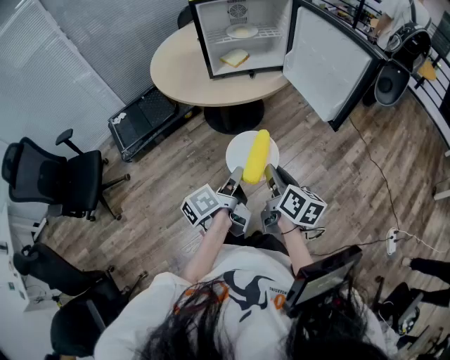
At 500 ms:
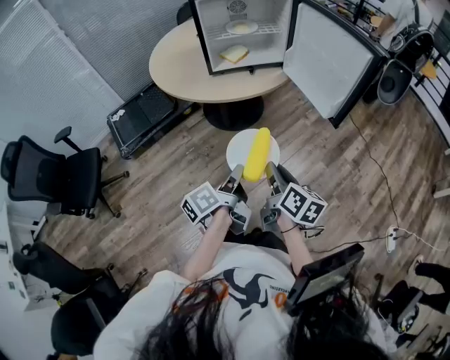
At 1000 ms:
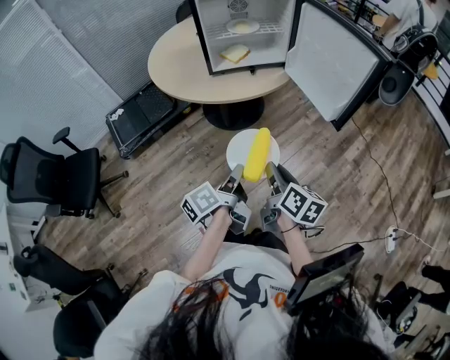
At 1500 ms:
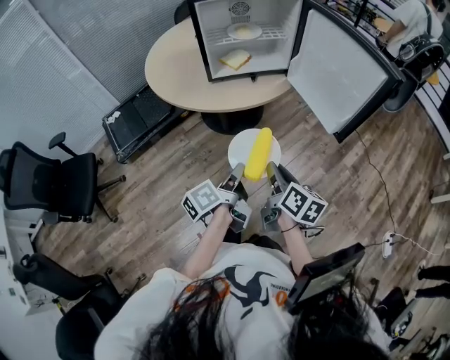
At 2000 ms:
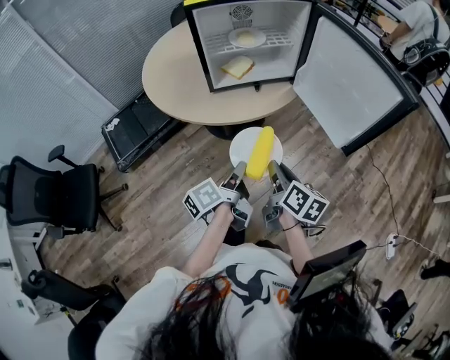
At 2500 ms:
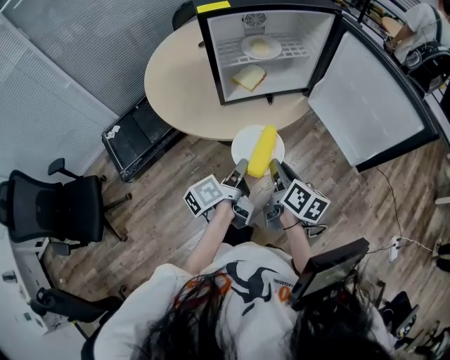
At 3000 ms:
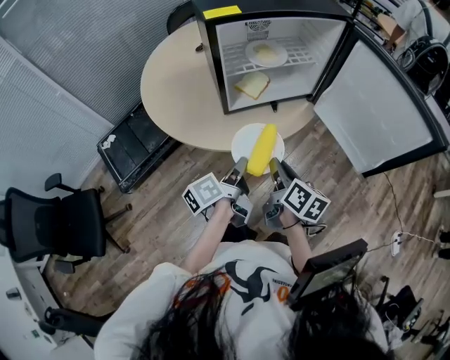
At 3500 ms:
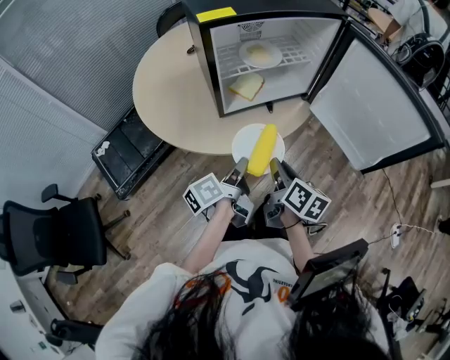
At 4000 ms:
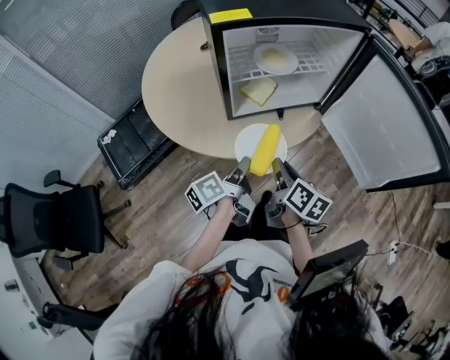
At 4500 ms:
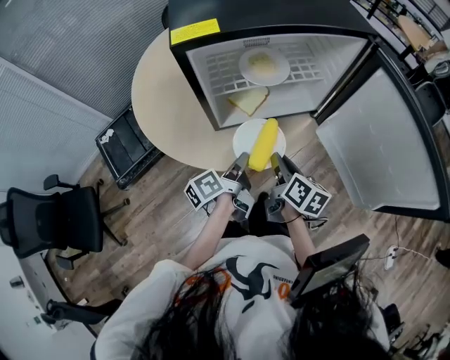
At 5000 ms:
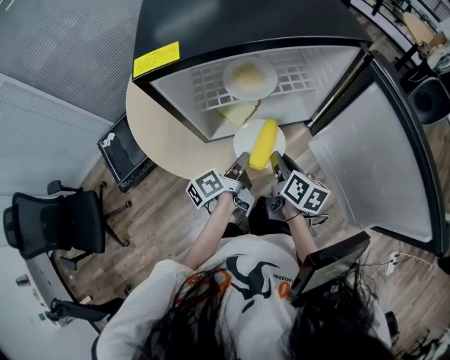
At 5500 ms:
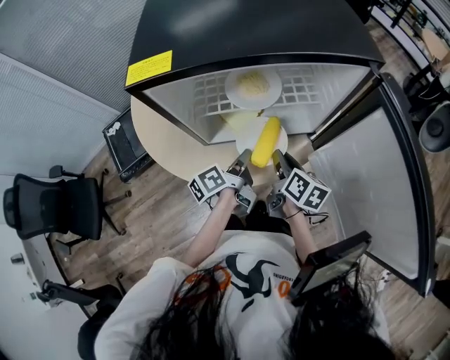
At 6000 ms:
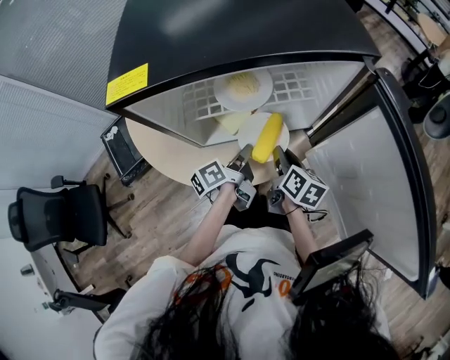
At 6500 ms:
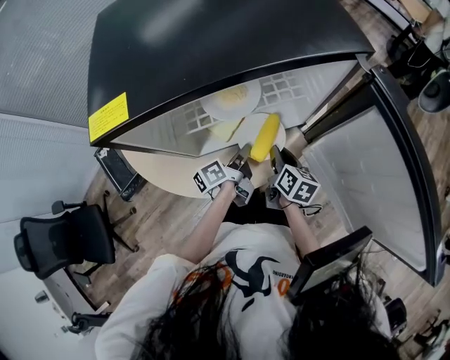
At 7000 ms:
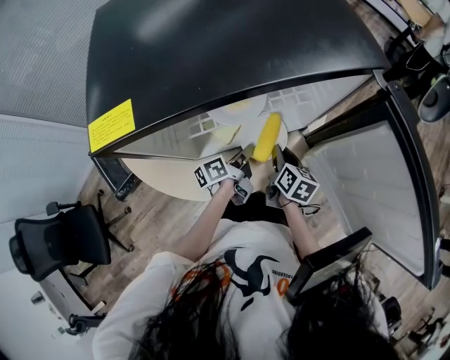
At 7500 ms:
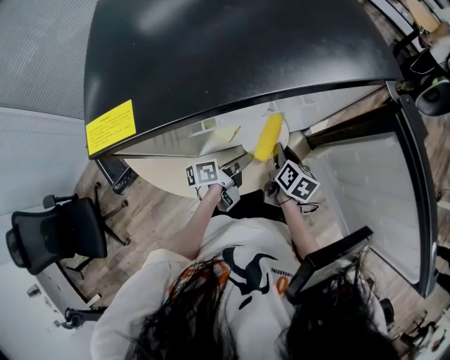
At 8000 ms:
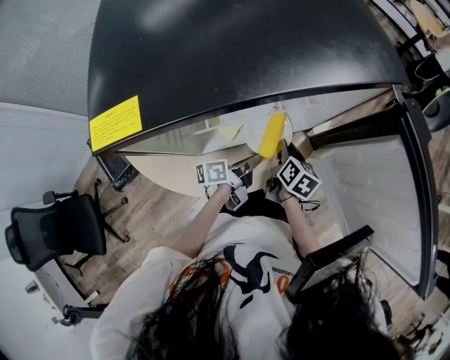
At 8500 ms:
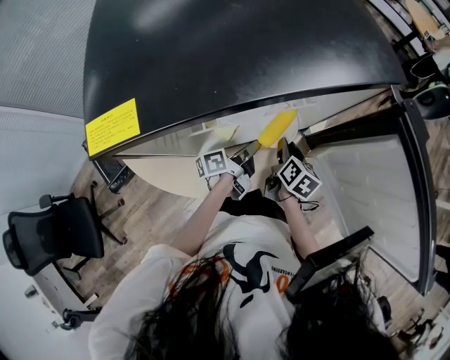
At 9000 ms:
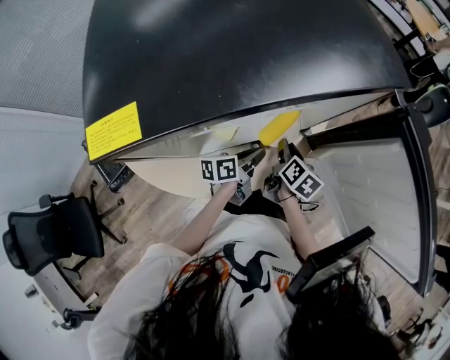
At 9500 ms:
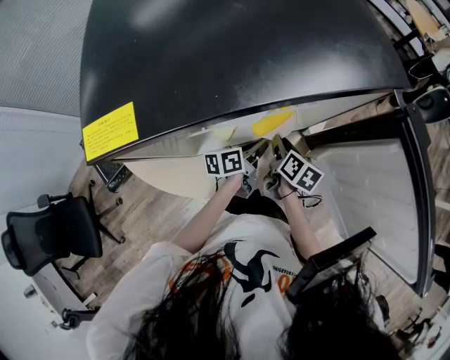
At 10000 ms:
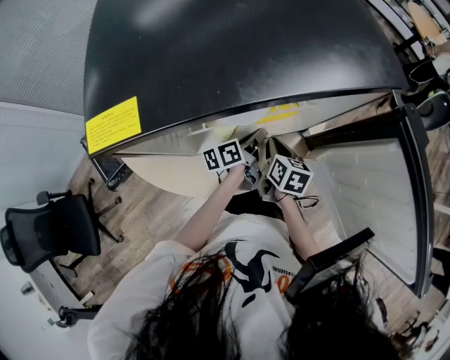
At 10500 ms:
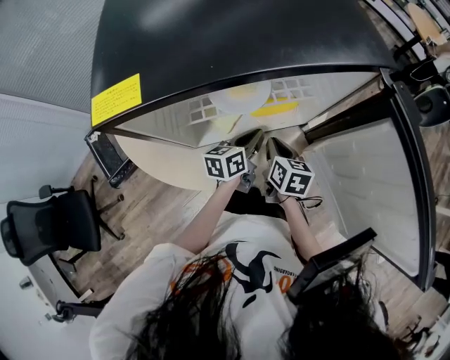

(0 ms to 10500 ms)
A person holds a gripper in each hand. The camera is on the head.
0 ms - 2000 ms: Both grippers move forward, roughly 15 cm.
2000 ms - 4000 ms: The two grippers go some 20 cm forward and to the left.
4000 ms - 6500 ms: The two grippers go some 25 cm forward, downward and to the right.
8500 ms - 10500 ms: The left gripper changes its angle by about 40 degrees. The right gripper changes place by roughly 5 cm, and changes its angle by roughly 20 degrees.

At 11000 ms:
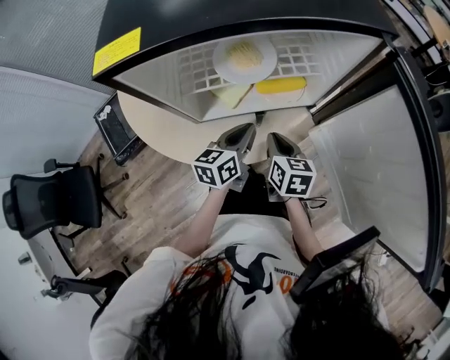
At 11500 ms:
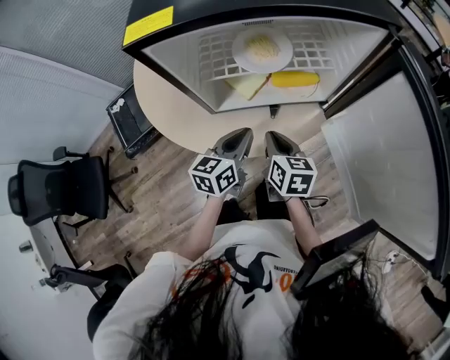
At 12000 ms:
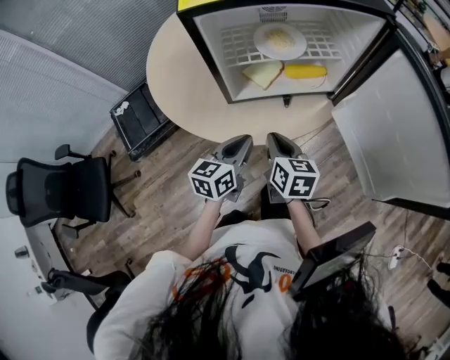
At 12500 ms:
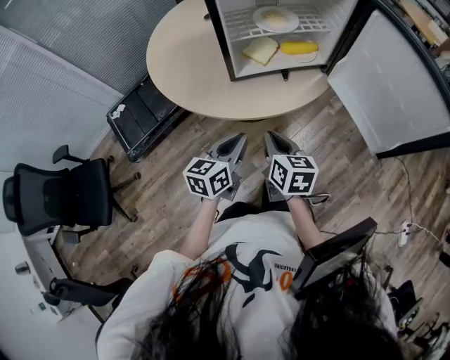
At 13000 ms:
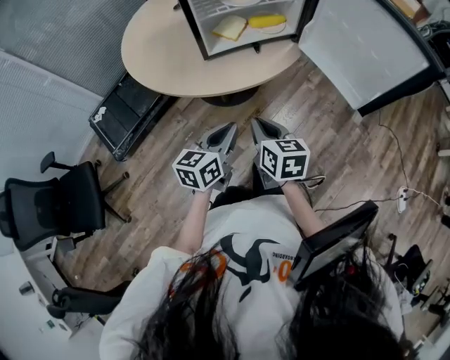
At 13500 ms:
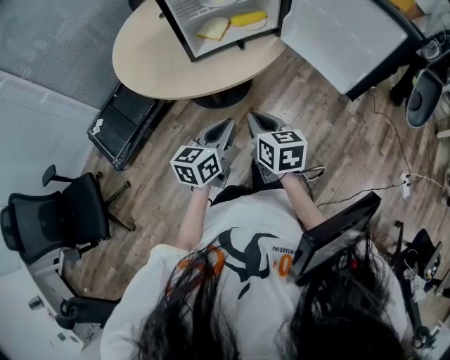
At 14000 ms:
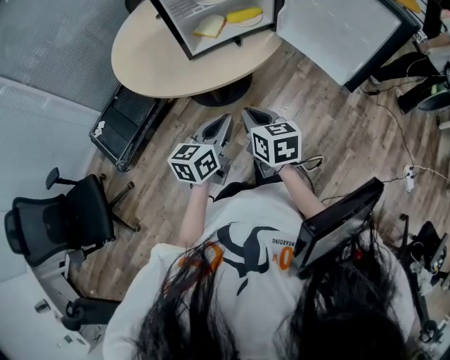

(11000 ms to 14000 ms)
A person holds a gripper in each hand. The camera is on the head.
11000 ms - 12500 ms: The two grippers go roughly 25 cm backward and to the left.
12500 ms - 14000 ms: The left gripper heads backward and to the right, covering about 10 cm, while the right gripper travels backward by some 10 cm.

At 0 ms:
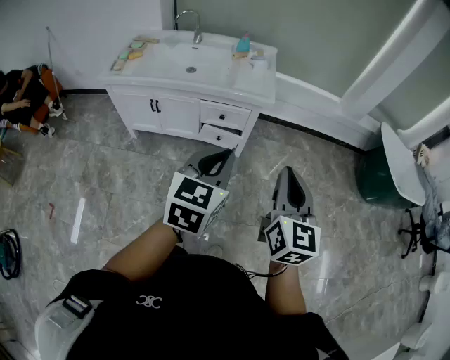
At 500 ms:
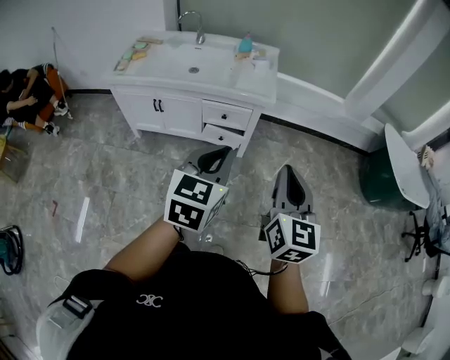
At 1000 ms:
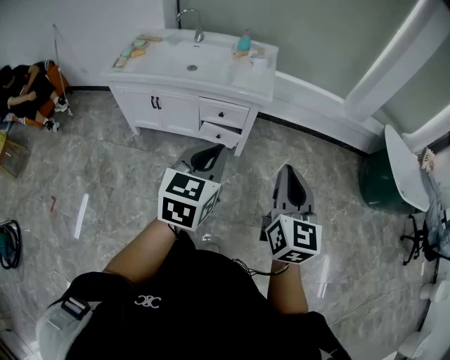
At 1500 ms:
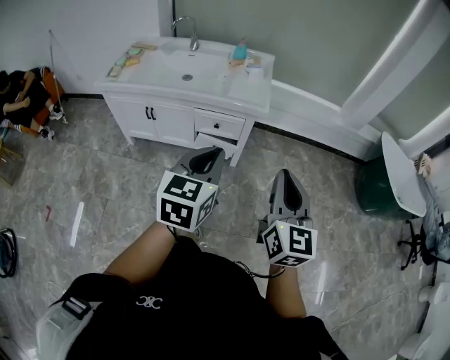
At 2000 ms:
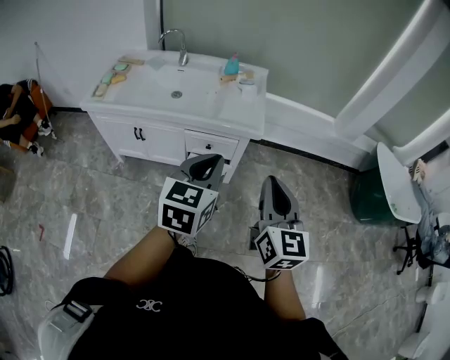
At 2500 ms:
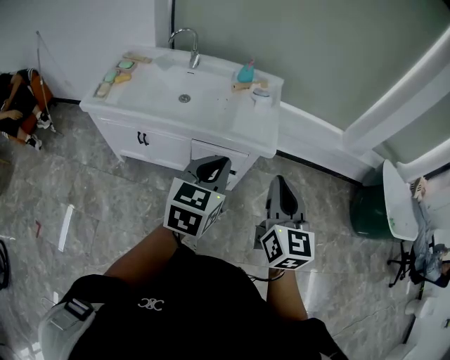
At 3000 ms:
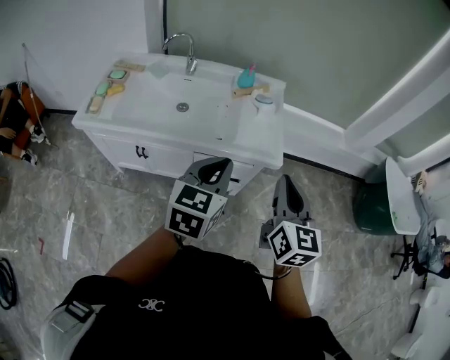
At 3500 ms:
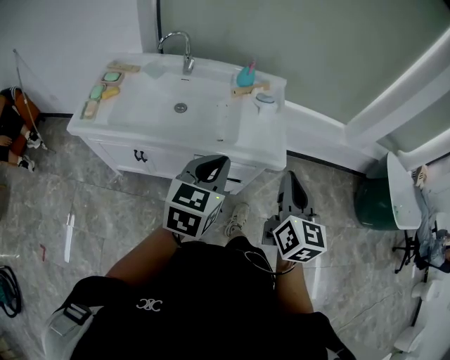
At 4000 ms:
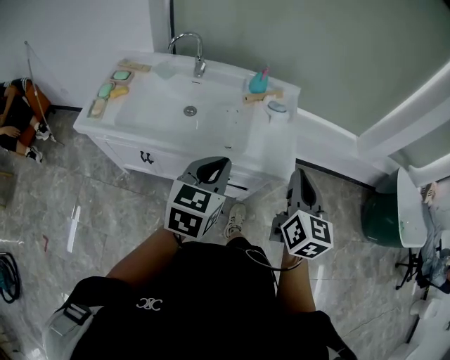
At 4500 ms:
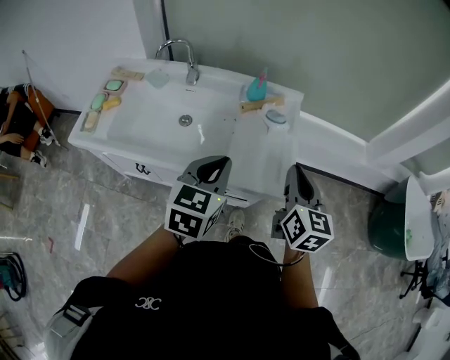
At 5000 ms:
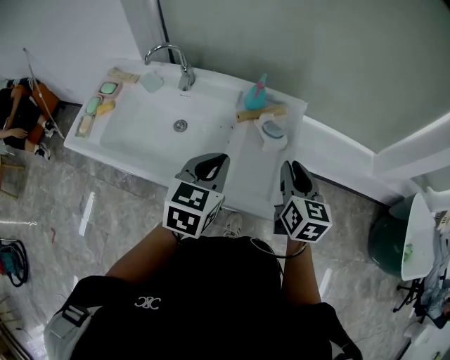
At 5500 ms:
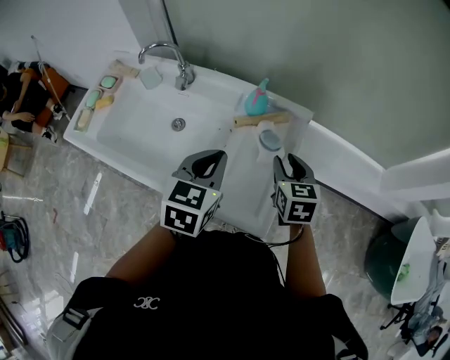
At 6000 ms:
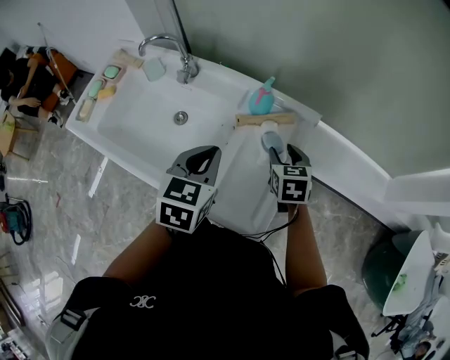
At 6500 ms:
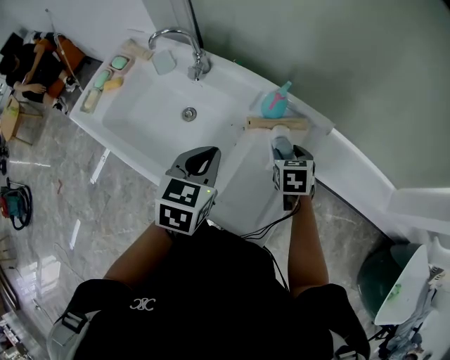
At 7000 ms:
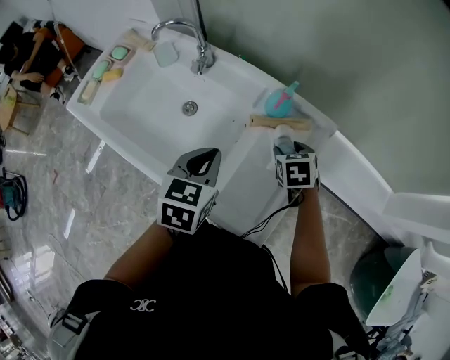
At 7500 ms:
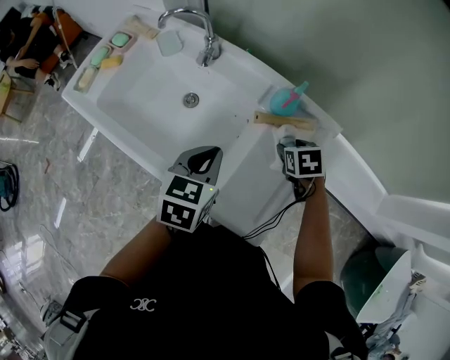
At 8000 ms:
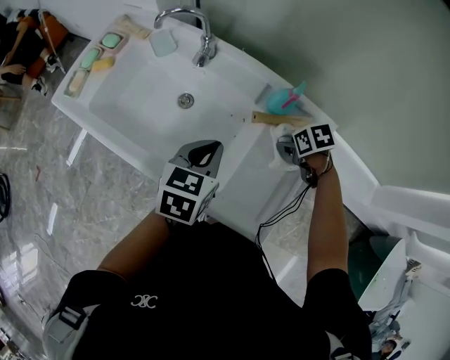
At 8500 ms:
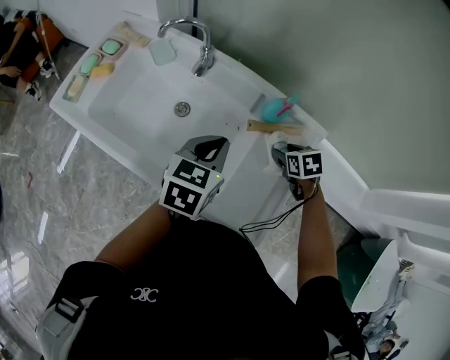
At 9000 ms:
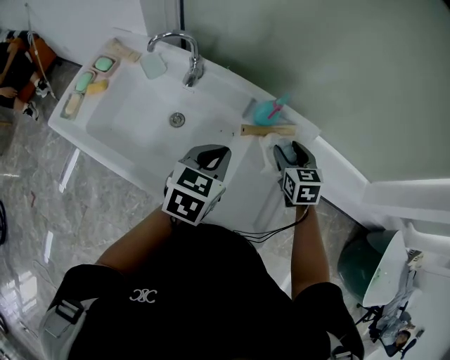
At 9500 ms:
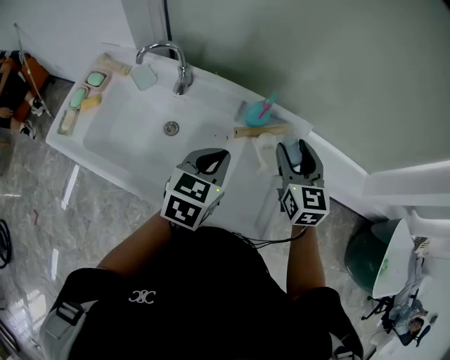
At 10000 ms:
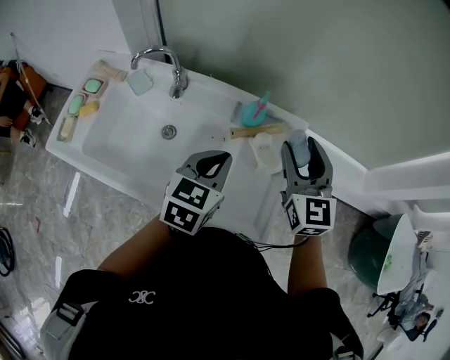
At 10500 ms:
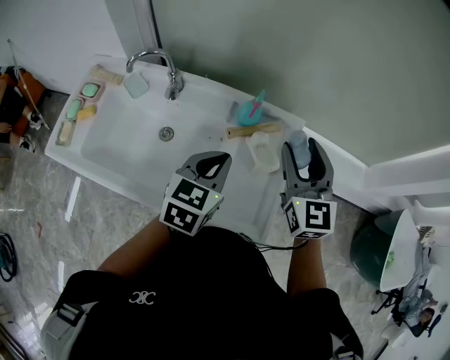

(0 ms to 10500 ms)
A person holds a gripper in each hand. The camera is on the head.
0 ms - 2000 ms: The two grippers go approximately 15 cm forward.
2000 ms - 4000 ms: The right gripper moves forward, approximately 25 cm, while the left gripper heads forward and to the left, covering some 25 cm.
4000 ms - 6500 ms: The right gripper is displaced forward and downward by about 40 cm, angles its fingers downward, by about 40 degrees, and opens, while the left gripper goes roughly 25 cm forward, and turns by about 30 degrees.
8500 ms - 10500 ms: The left gripper shifts approximately 5 cm to the right. The right gripper travels upward by roughly 25 cm, and tips its fingers upward by roughly 60 degrees.

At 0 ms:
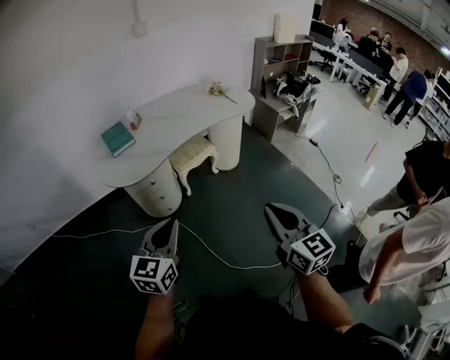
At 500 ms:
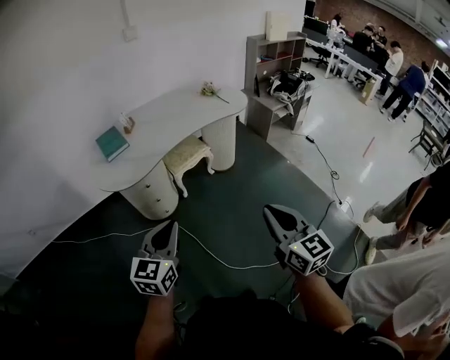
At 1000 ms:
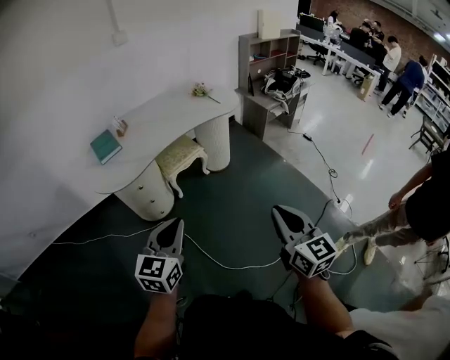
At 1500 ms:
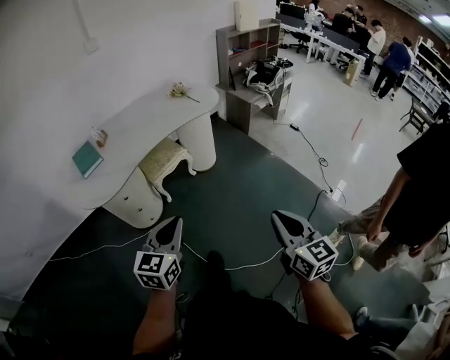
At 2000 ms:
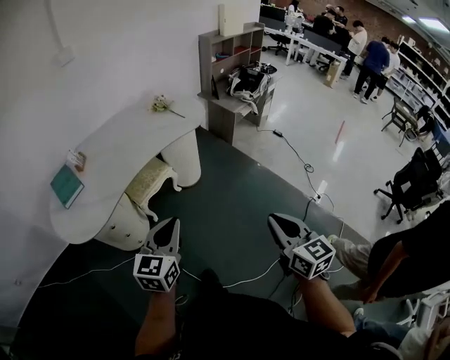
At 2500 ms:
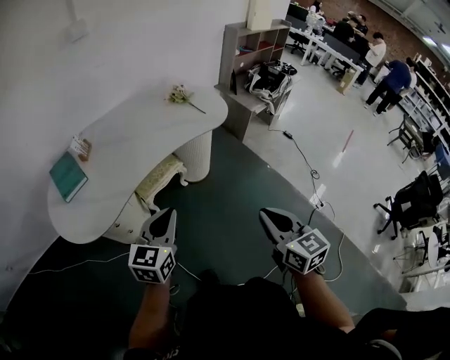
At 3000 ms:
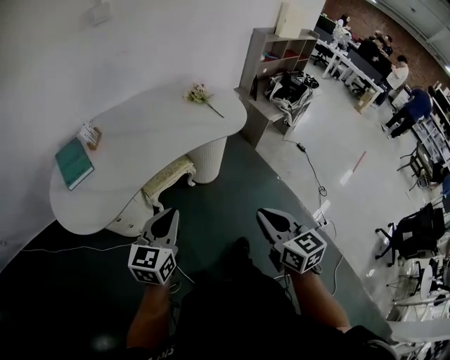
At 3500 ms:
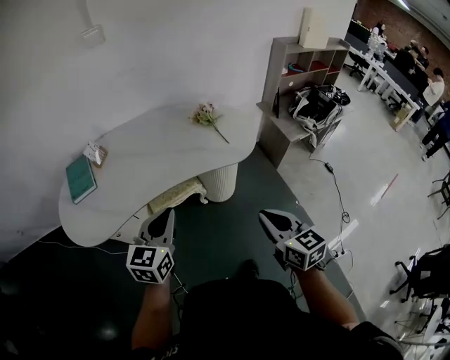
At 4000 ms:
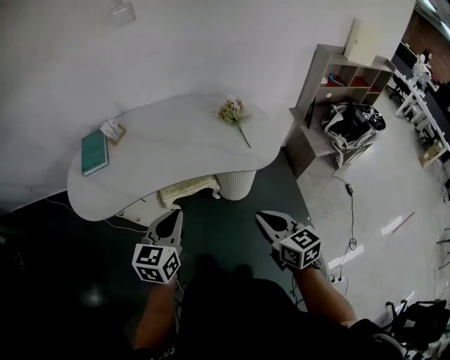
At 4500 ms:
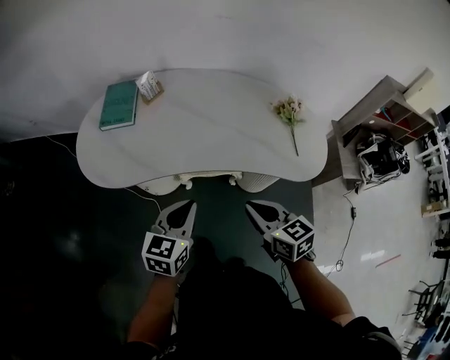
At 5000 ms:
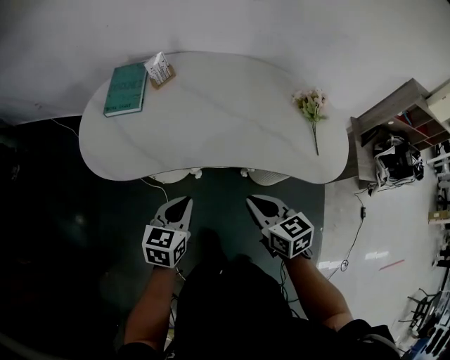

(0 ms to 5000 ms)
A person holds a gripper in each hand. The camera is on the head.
0 ms - 2500 ms: Both grippers move forward, about 30 cm.
2500 ms - 5000 ms: The left gripper moves about 25 cm, and swivels about 50 degrees. The right gripper ends up some 40 cm from where it was, and changes its angle by roughly 60 degrees.
